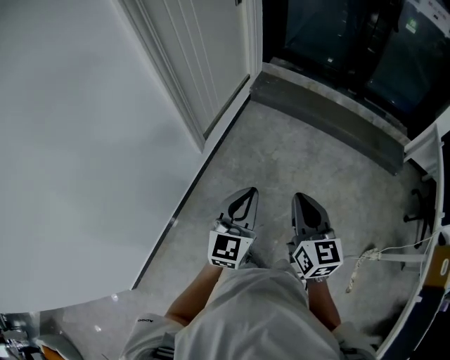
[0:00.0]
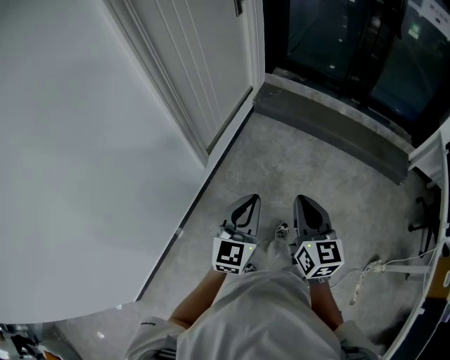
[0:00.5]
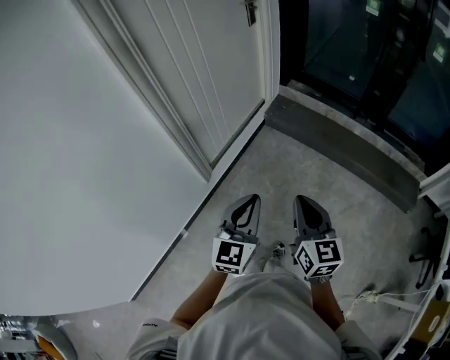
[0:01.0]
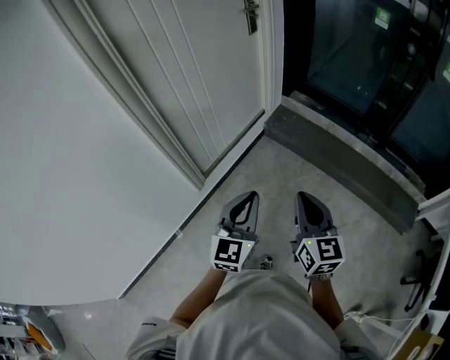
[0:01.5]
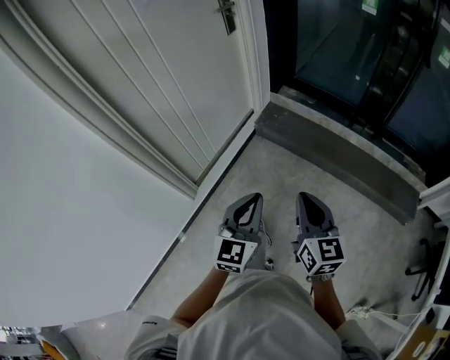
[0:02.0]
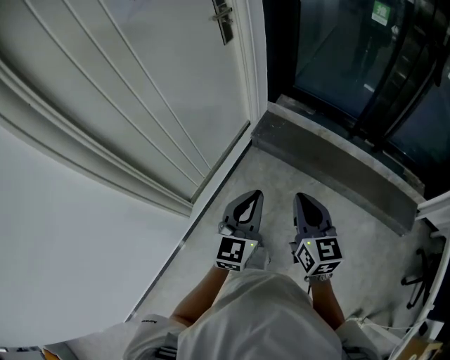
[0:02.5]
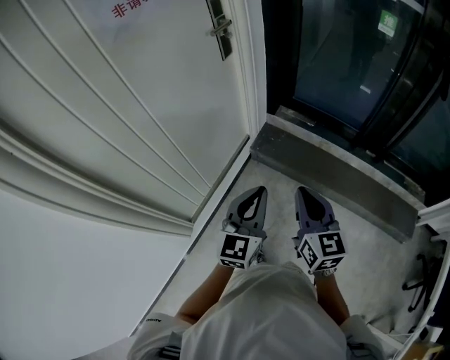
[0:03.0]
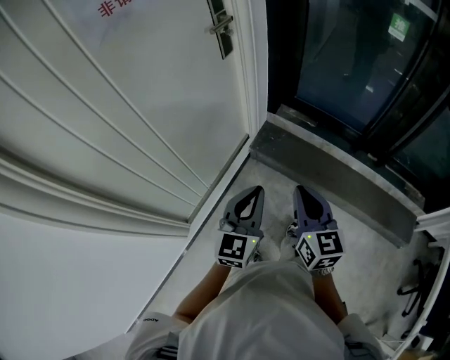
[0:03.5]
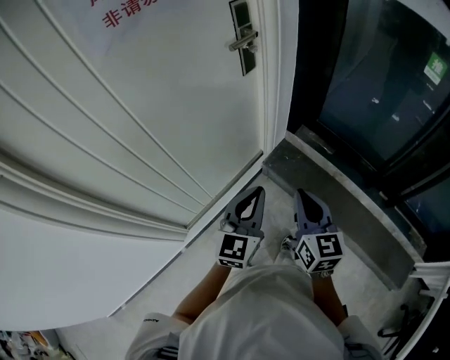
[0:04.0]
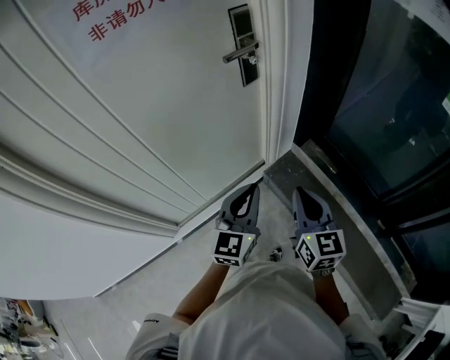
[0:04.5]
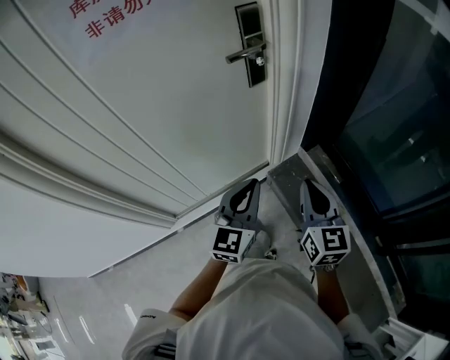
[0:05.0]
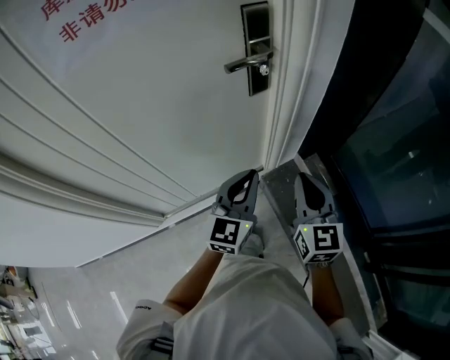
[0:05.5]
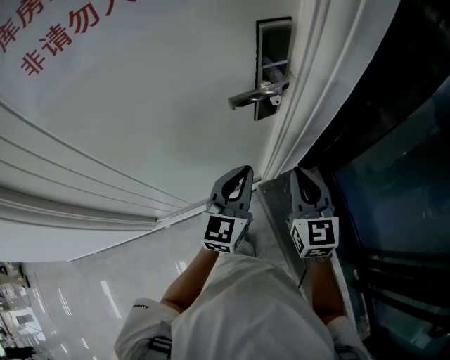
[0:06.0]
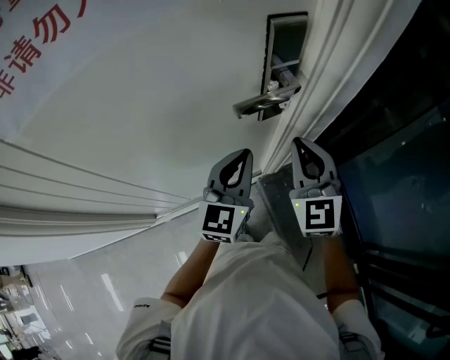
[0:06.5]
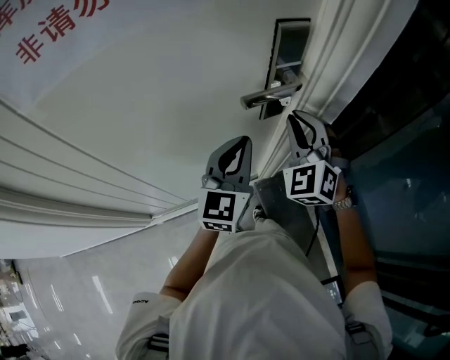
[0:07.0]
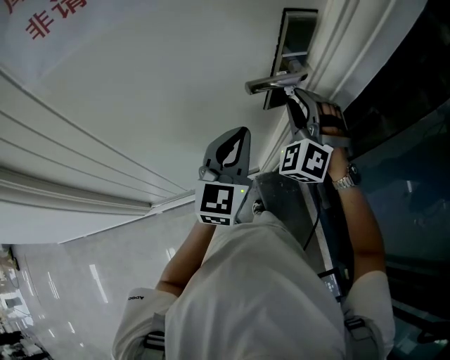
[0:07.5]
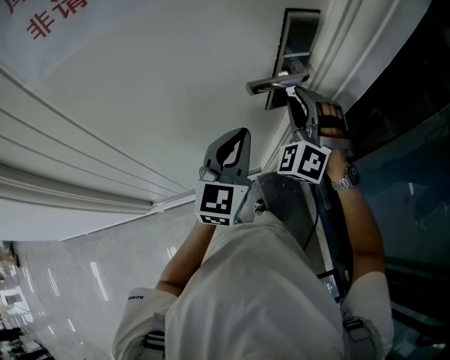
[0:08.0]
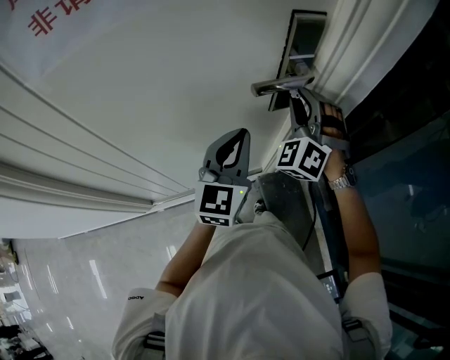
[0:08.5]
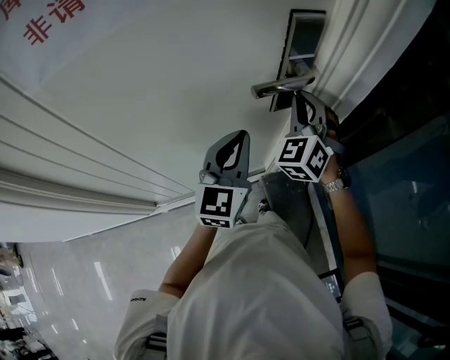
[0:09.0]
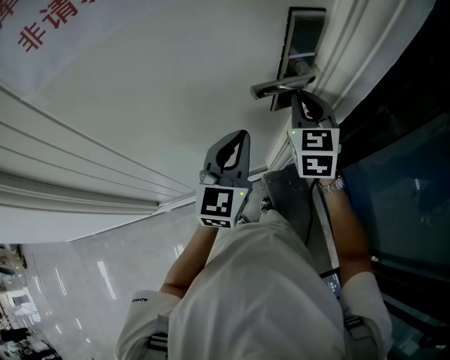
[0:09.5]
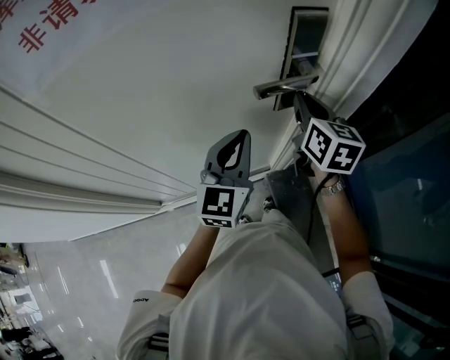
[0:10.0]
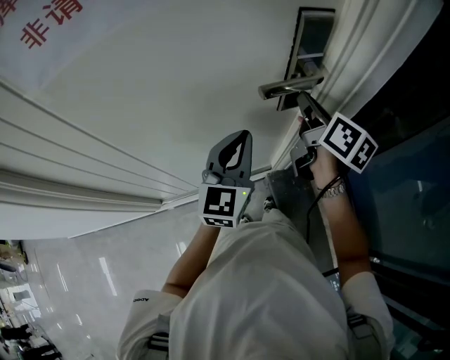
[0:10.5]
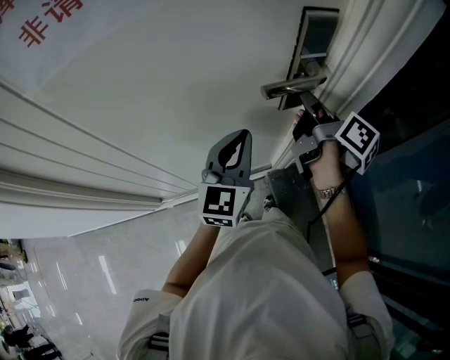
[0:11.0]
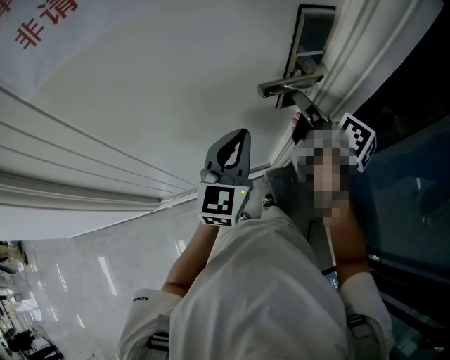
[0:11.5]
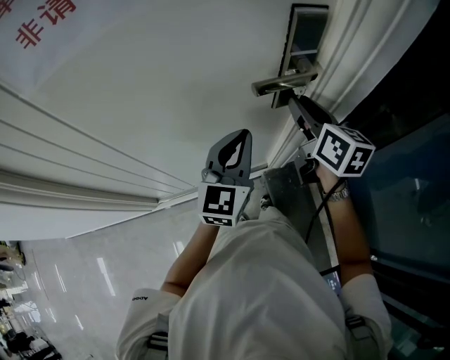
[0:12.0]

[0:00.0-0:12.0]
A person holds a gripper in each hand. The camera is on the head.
0:00.0 to 0:02.0: The two grippers travel together, forward and to the right, approximately 40 cm.
0:02.0 to 0:04.0: The pair of grippers is taken forward, approximately 40 cm.
0:04.0 to 0:06.0: The grippers both shift forward by roughly 35 cm. The left gripper turns by about 20 degrees. The right gripper turns by about 30 degrees.
0:06.0 to 0:08.0: The left gripper ends up roughly 5 cm from where it was; the right gripper heads forward and to the left, covering roughly 15 cm, twists approximately 70 degrees counterclockwise, seen from behind, and opens up.
0:08.0 to 0:10.0: The right gripper rotates around the line of its fingers by some 90 degrees, clockwise from behind, and closes.
0:10.0 to 0:12.0: The right gripper opens up.

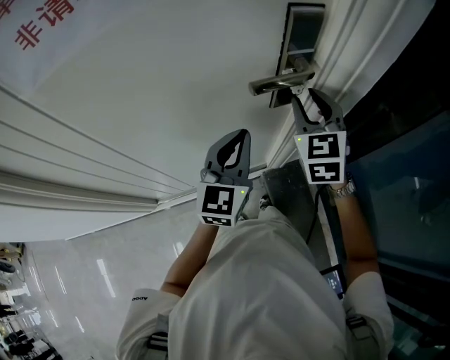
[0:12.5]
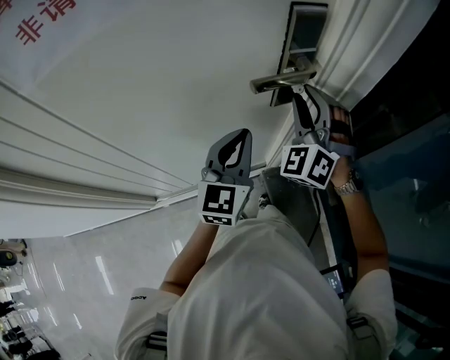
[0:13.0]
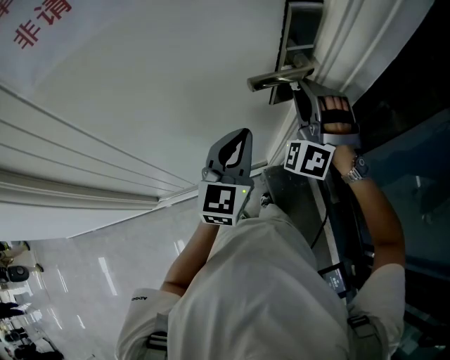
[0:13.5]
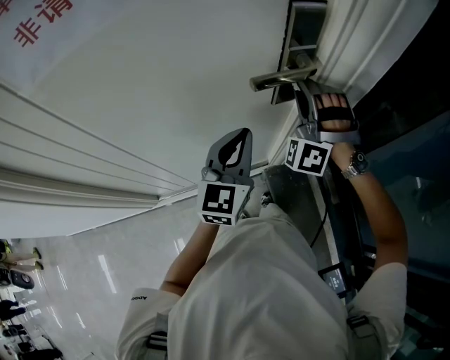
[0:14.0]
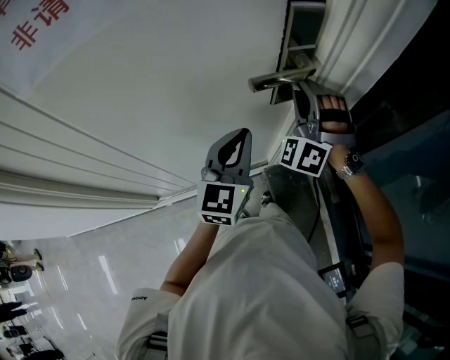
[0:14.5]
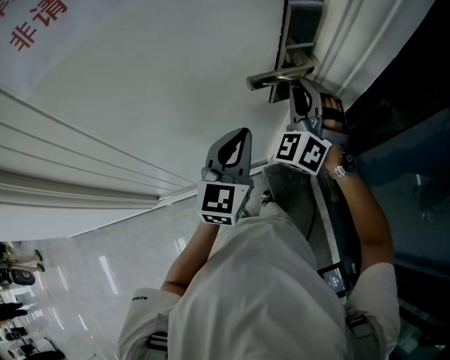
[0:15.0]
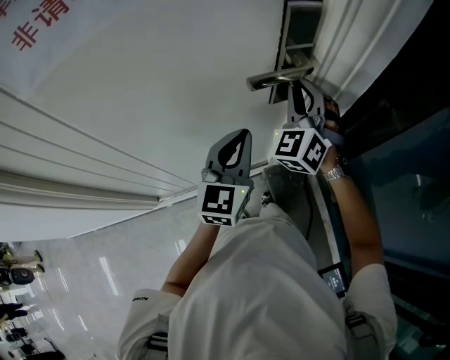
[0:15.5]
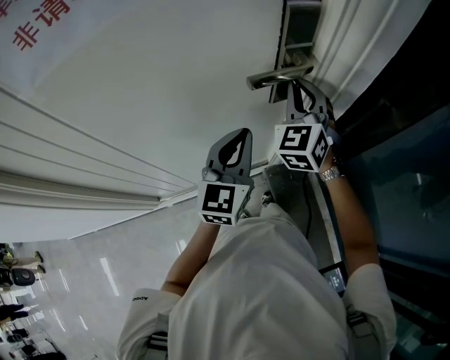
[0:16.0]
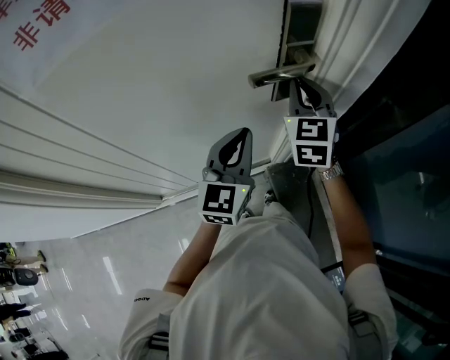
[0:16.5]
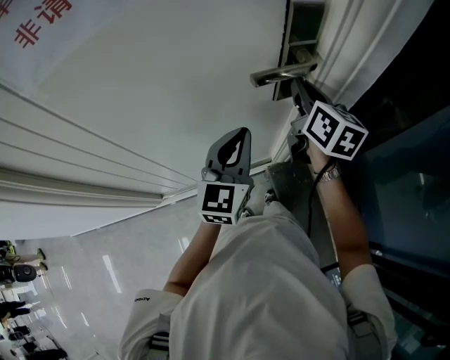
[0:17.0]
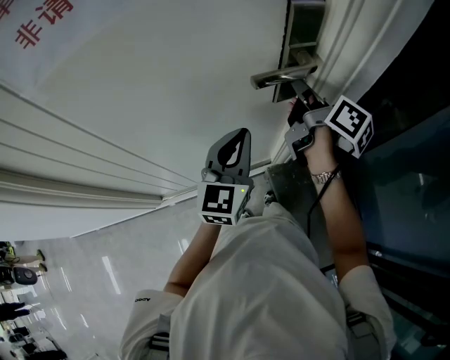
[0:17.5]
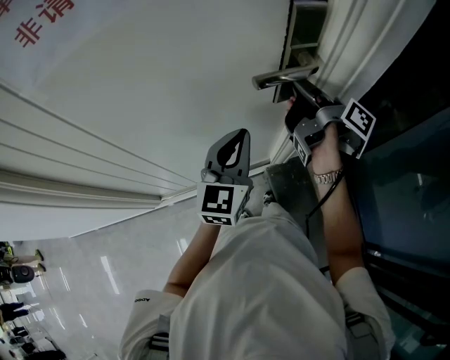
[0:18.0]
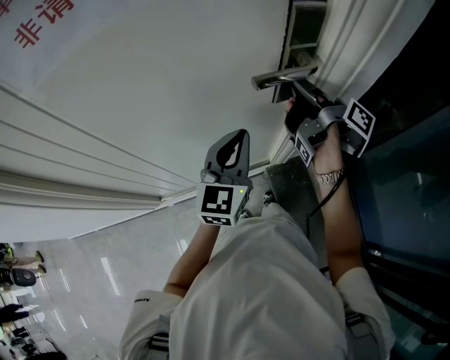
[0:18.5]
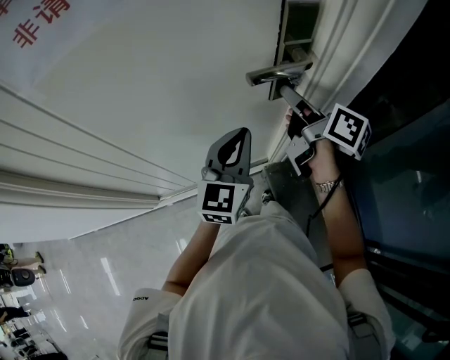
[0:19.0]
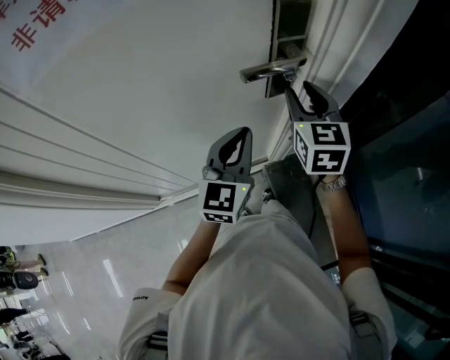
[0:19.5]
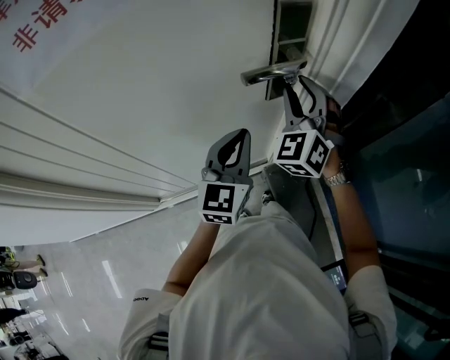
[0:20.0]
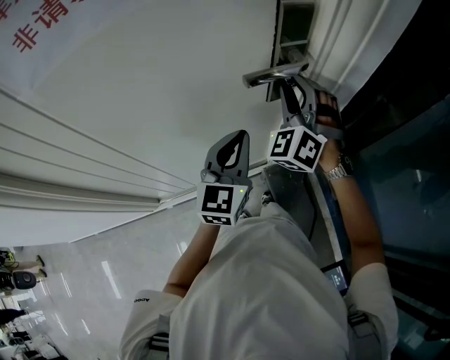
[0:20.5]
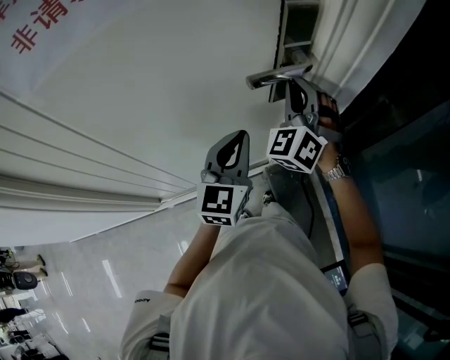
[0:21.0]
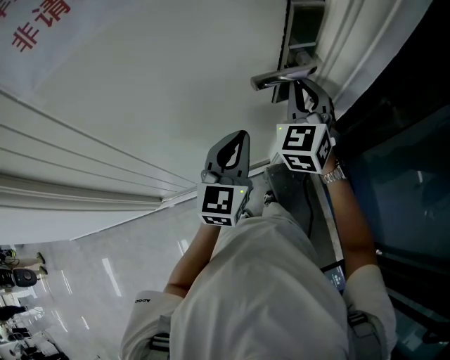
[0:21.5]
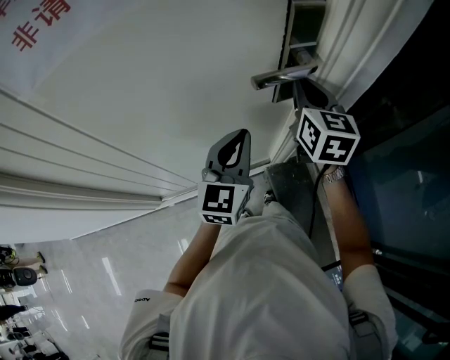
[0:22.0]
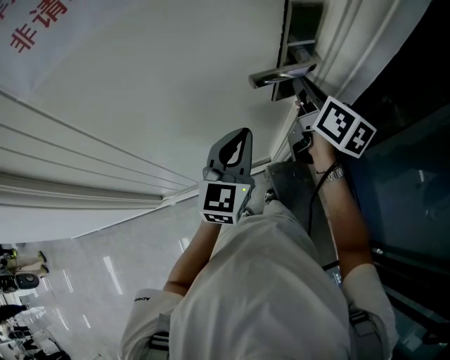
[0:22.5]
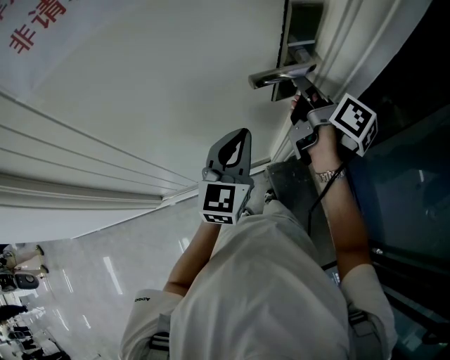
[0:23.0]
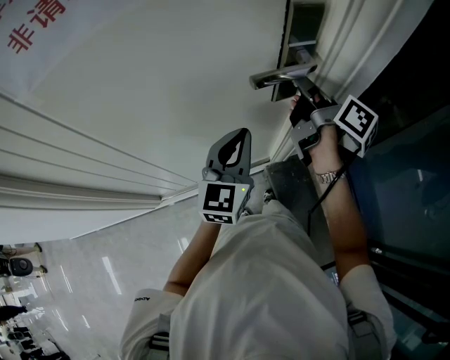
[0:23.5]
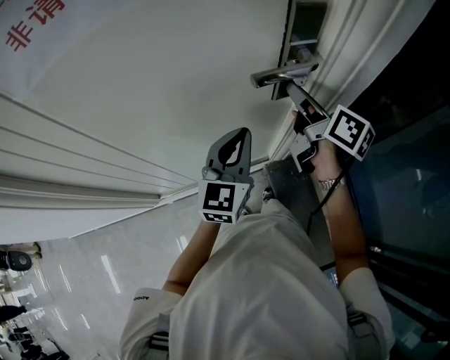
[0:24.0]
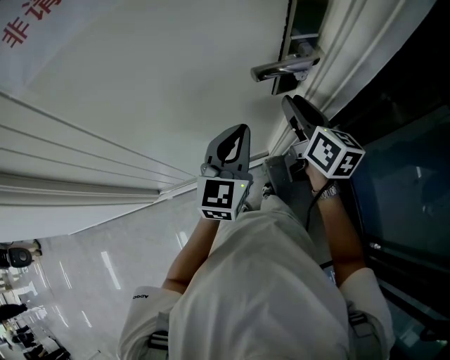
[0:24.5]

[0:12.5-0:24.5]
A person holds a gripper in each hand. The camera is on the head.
0:12.5 to 0:14.5: The right gripper rolls counterclockwise, seen from behind, by some 60 degrees.
0:14.5 to 0:16.5: The right gripper rotates around the line of its fingers by approximately 60 degrees, clockwise from behind.
0:16.5 to 0:18.5: The right gripper rolls clockwise, seen from behind, by roughly 100 degrees.
0:18.5 to 0:20.5: The right gripper rolls counterclockwise, seen from behind, by some 150 degrees, and opens up.
0:20.5 to 0:22.5: The right gripper rotates around the line of its fingers by roughly 100 degrees, clockwise from behind, and closes.
0:22.5 to 0:24.5: The right gripper changes place by approximately 5 cm, and opens up.

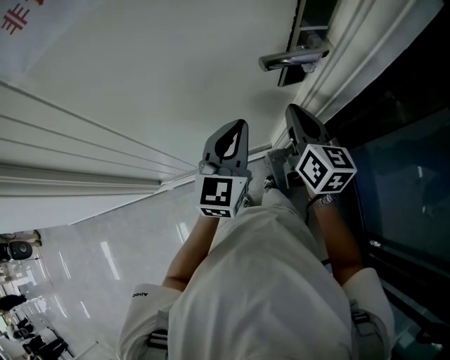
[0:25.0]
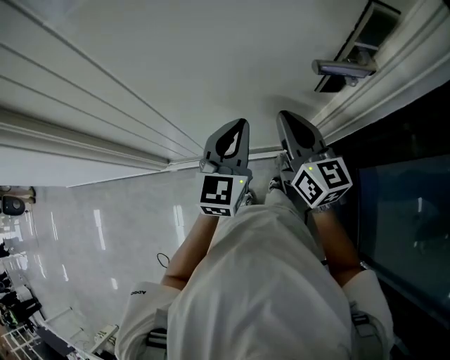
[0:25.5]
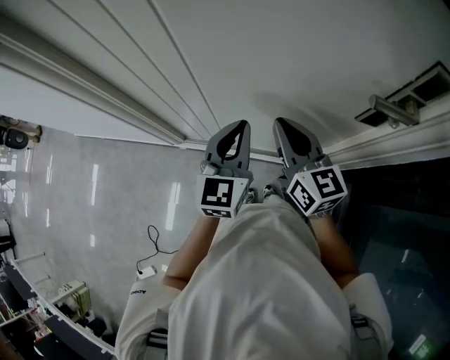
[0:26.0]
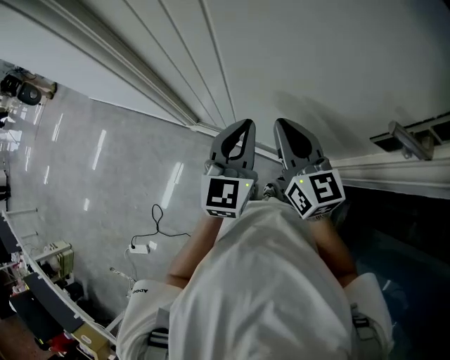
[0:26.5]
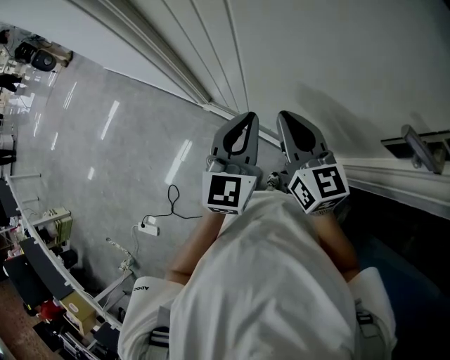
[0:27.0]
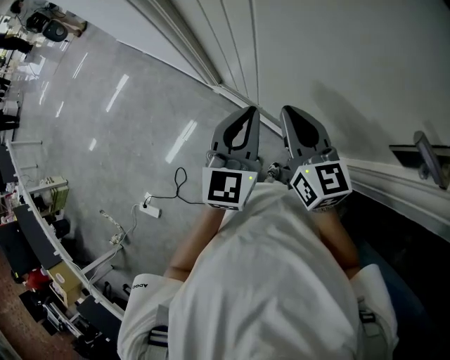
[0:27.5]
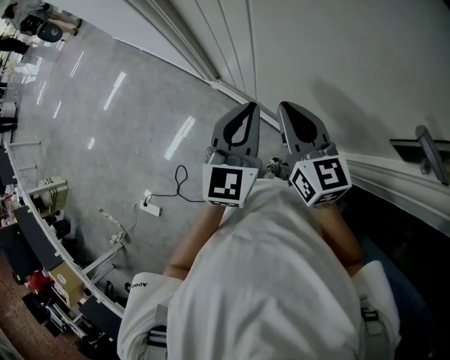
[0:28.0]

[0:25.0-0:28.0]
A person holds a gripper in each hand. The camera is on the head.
0:25.0 to 0:26.5: The left gripper ends up some 20 cm from where it was, and turns by roughly 40 degrees, while the right gripper shifts by approximately 25 cm, and changes its angle by approximately 50 degrees.
0:26.5 to 0:28.0: The right gripper ends up roughly 5 cm from where it was, while the left gripper moves some 5 cm.
